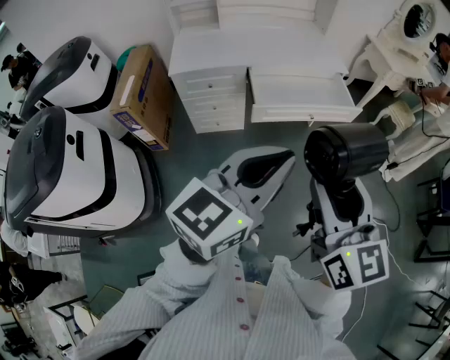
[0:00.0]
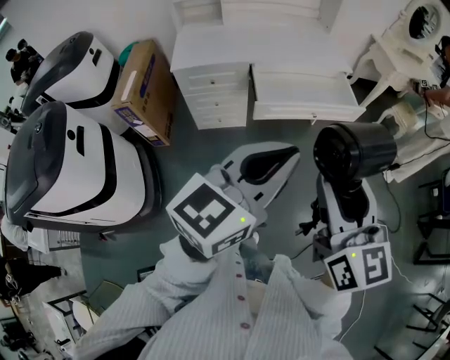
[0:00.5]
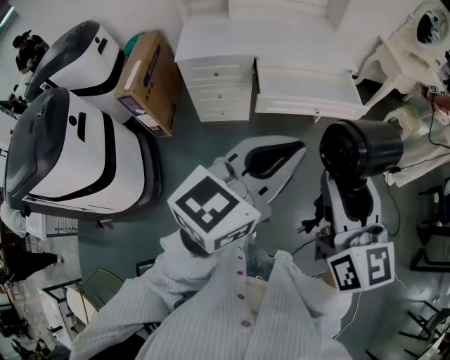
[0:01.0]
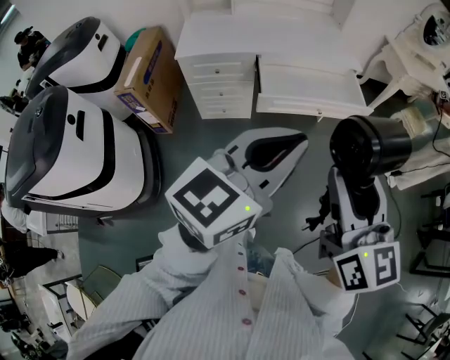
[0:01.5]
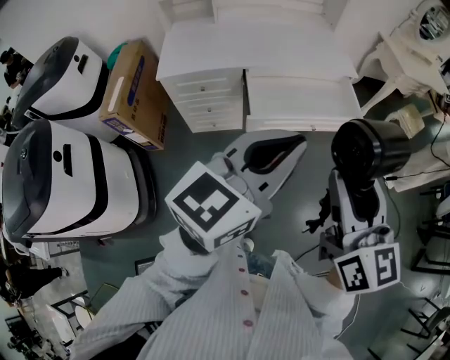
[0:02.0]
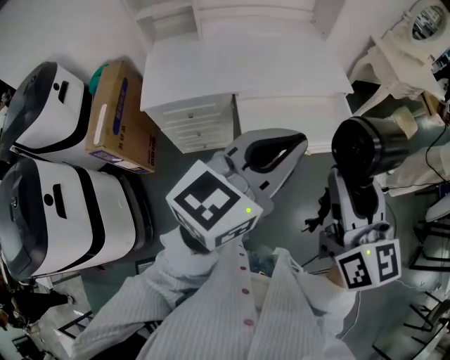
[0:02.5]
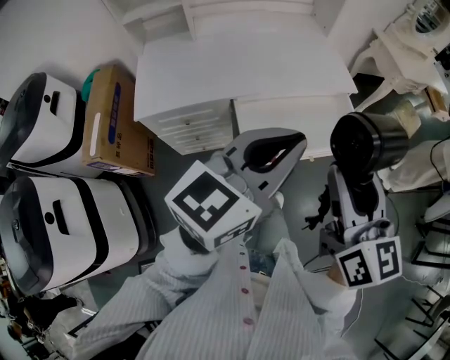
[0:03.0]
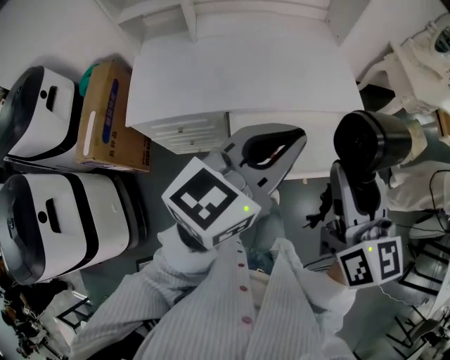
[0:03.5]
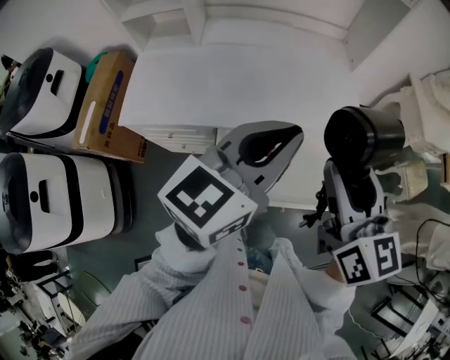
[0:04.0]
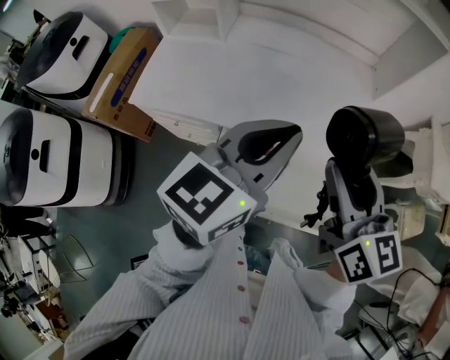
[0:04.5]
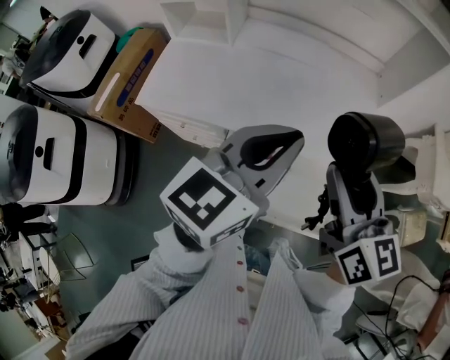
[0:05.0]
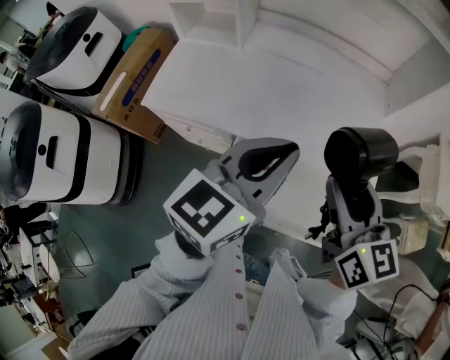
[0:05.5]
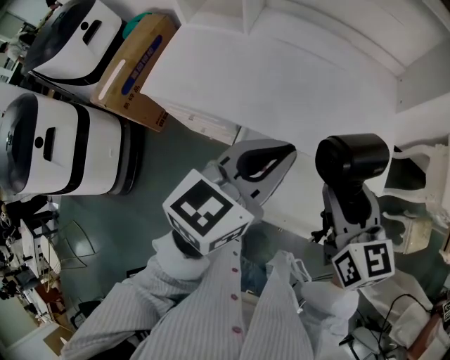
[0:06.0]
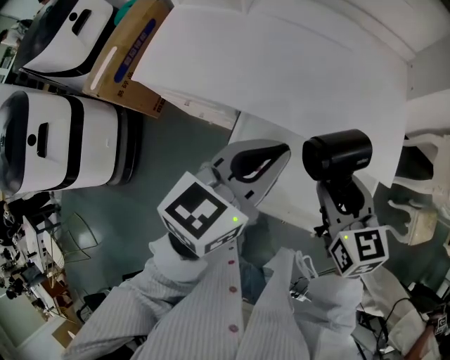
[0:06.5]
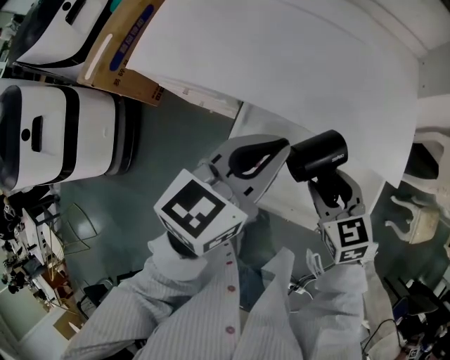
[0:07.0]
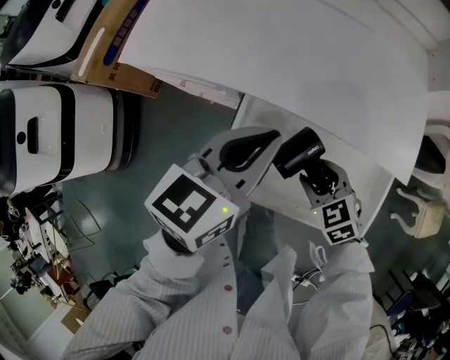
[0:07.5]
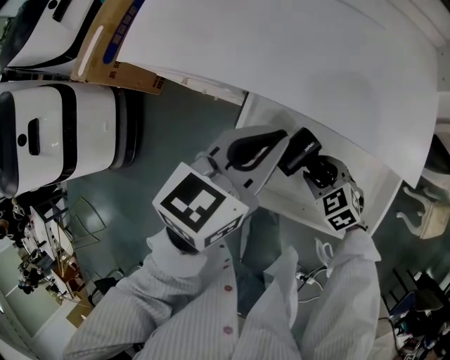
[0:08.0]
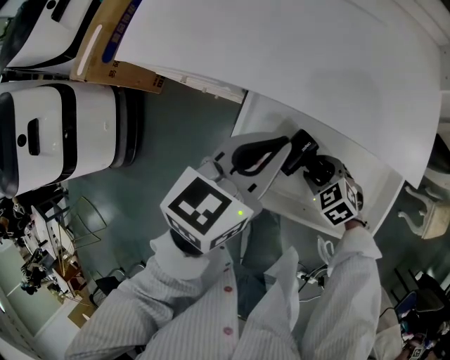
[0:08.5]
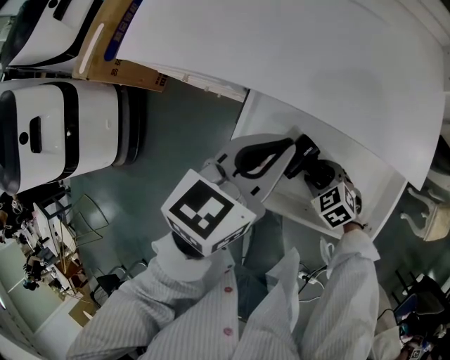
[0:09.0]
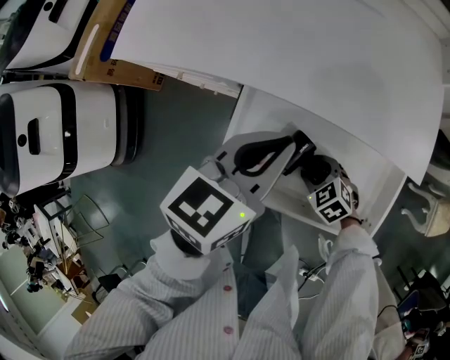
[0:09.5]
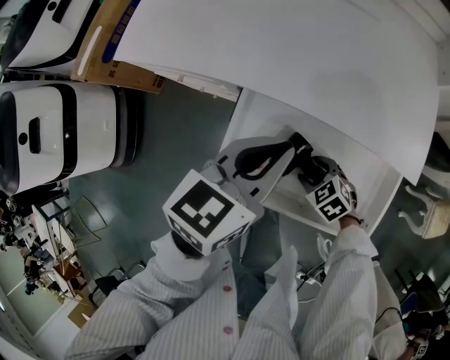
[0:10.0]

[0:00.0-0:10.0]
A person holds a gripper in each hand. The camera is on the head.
0.0 to 2.0 s: The grippers both shift forward by roughly 15 cm.
2.0 to 4.0 s: The two grippers travel together, forward, roughly 40 cm.
4.0 to 6.0 s: The right gripper is displaced downward and forward by approximately 15 cm, and swivels about 20 degrees. The left gripper is displaced downward and to the left by some 10 cm.
6.0 to 8.0 s: The left gripper moves downward, roughly 15 cm, while the right gripper goes about 35 cm downward, and tips its fingers downward by about 40 degrees.
8.0 to 10.0 s: The right gripper moves downward, some 5 cm.

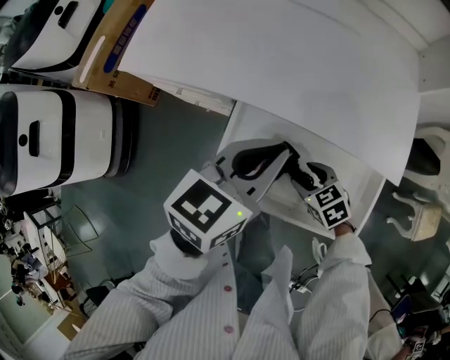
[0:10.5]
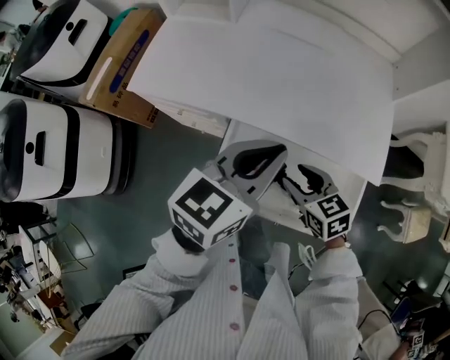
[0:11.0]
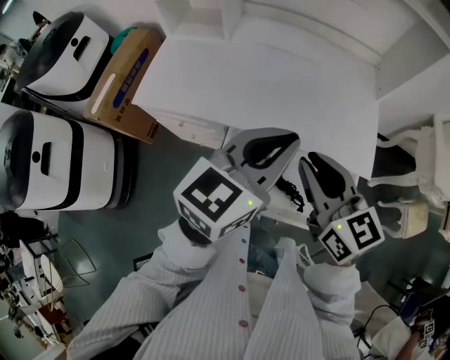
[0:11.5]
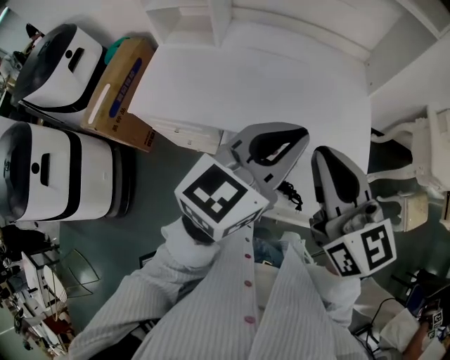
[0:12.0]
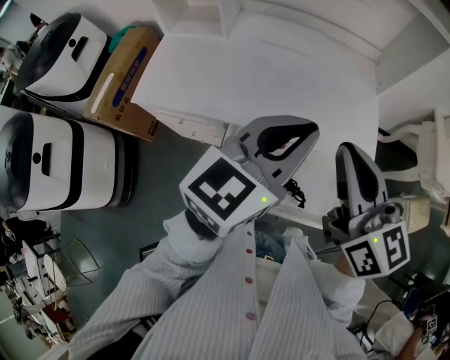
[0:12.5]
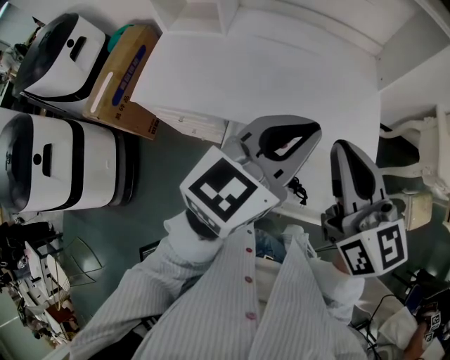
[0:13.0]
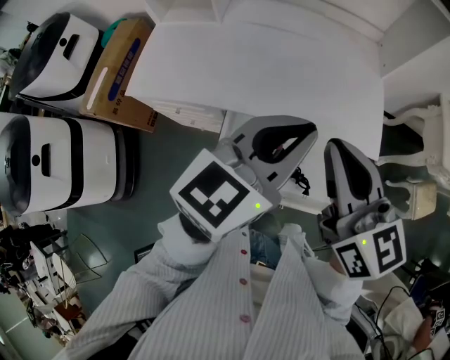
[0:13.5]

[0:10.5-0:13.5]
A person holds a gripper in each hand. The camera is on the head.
10.5 to 12.0 s: The right gripper is displaced upward by approximately 40 cm, tips its fingers upward by approximately 50 degrees, and closes. The left gripper moves upward, about 20 cm, and swivels about 20 degrees.
12.0 to 13.5 s: The grippers make only small movements.

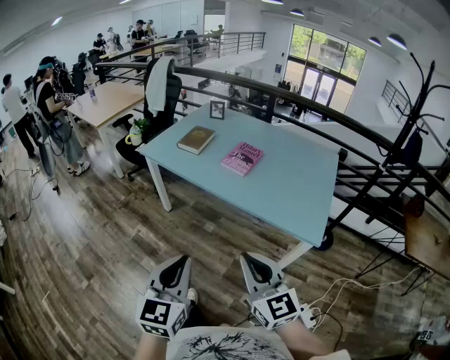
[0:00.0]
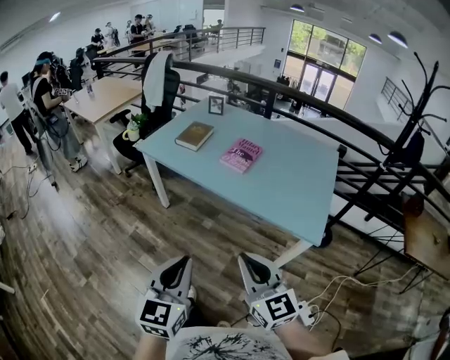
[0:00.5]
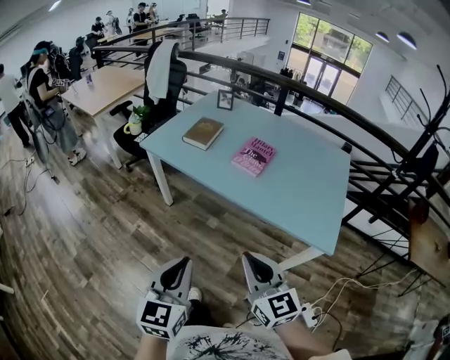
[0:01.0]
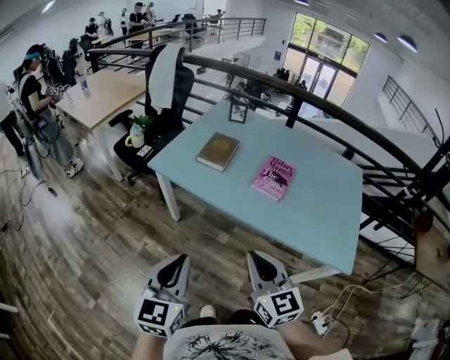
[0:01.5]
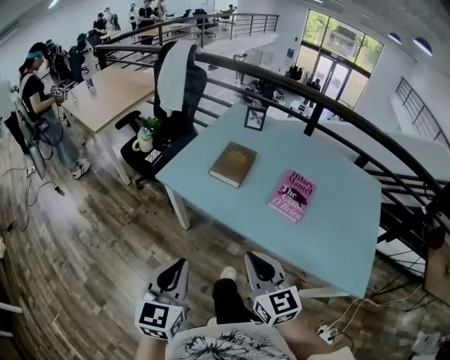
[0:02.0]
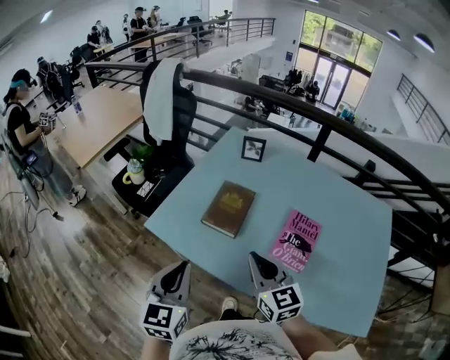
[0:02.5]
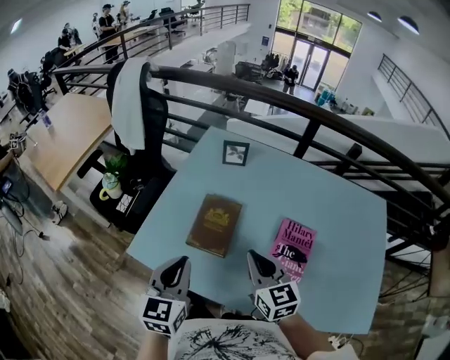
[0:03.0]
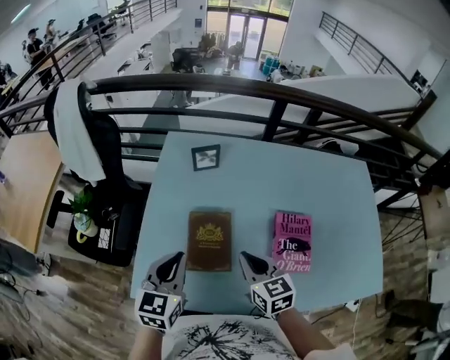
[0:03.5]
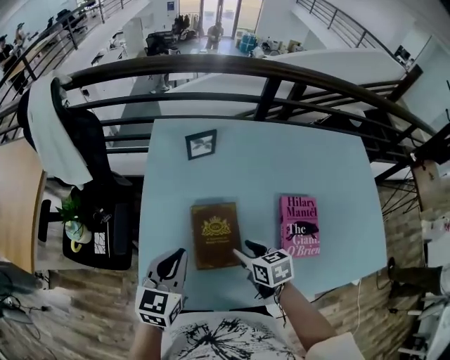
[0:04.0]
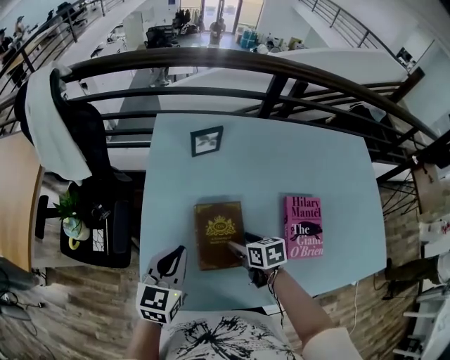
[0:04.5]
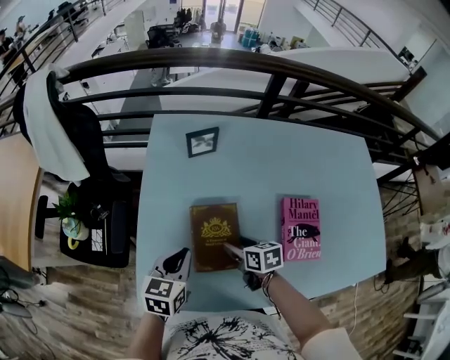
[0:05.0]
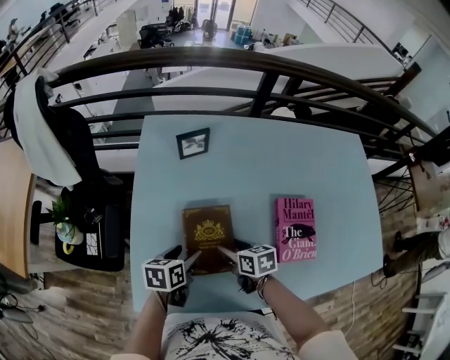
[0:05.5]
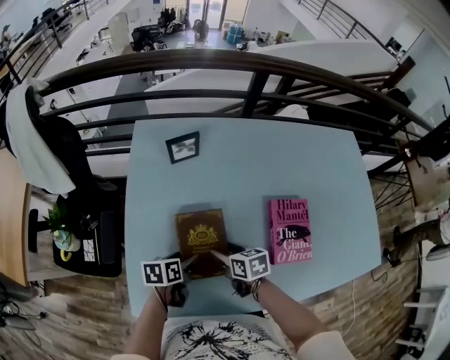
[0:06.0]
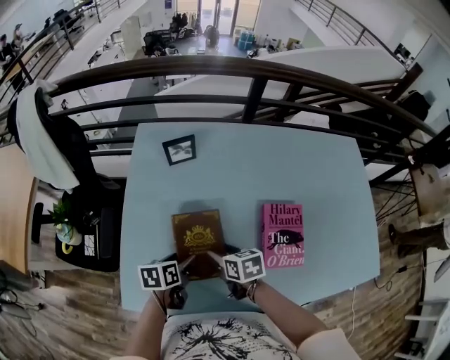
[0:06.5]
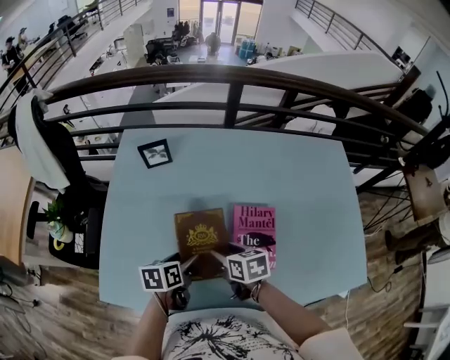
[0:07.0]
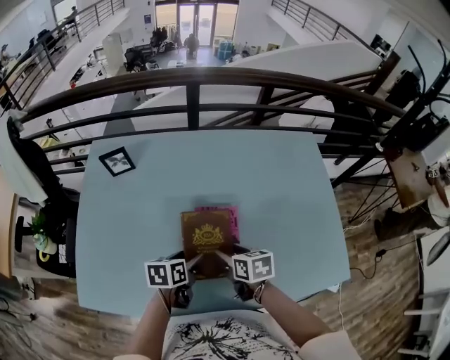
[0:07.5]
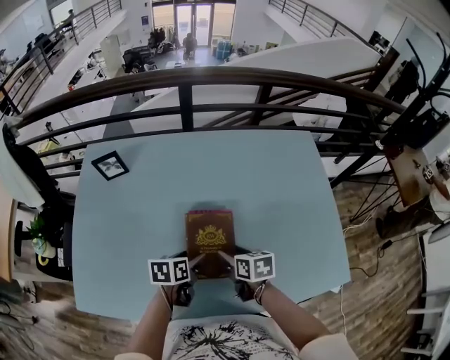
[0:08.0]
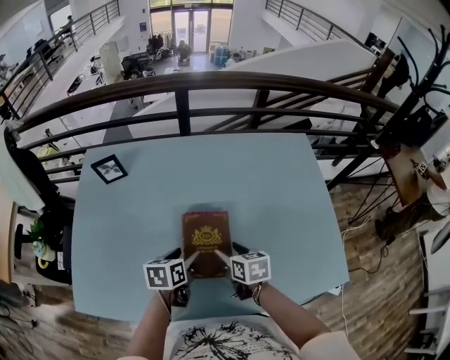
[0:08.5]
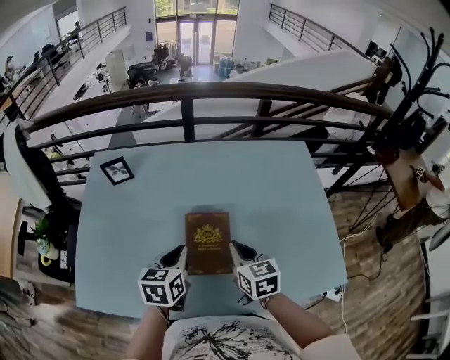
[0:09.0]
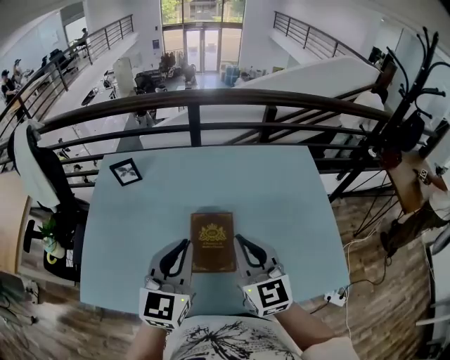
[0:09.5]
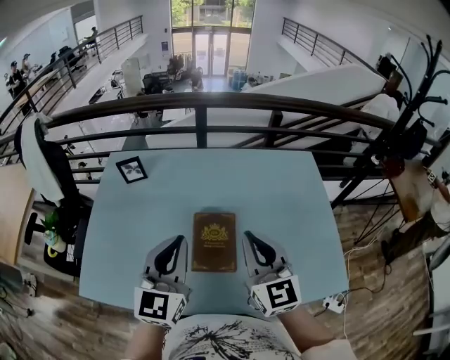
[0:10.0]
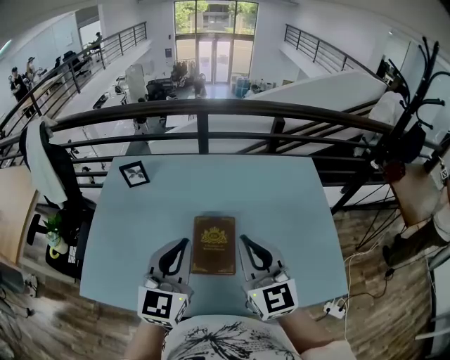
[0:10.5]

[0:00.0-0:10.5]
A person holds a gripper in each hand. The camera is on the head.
0.0 to 2.0 s: The pair of grippers is taken forward and to the left, roughly 40 cm.
2.0 to 4.0 s: The two grippers travel together, some 50 cm. The right gripper points its fingers approximately 40 degrees further downward, and opens. The left gripper swivels approximately 40 degrees.
4.0 to 6.5 s: The left gripper travels downward and to the right by some 15 cm, swivels about 50 degrees, and opens.
6.5 to 8.5 s: The grippers both shift to the right by approximately 30 cm.
8.5 to 10.5 s: The two grippers go roughly 30 cm upward. The left gripper tilts its fingers about 40 degrees upward, and closes its fingers; the right gripper tips its fingers upward by roughly 40 degrees, and closes its fingers.

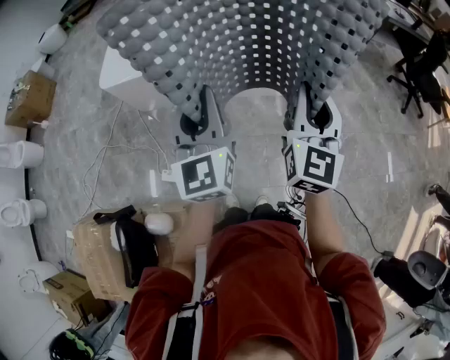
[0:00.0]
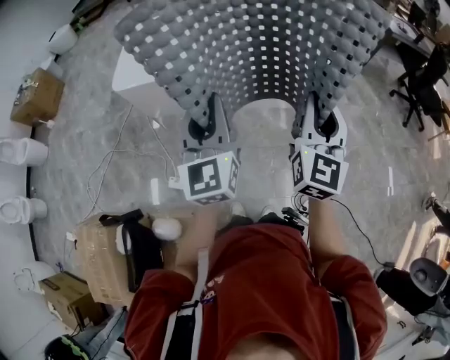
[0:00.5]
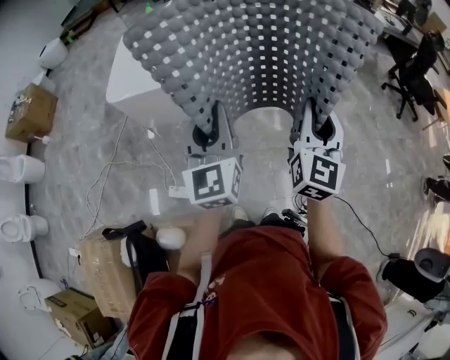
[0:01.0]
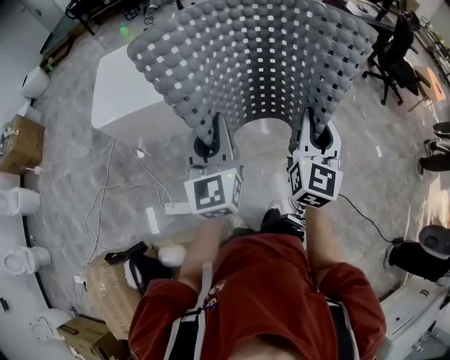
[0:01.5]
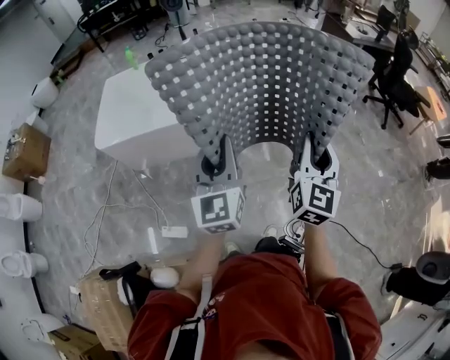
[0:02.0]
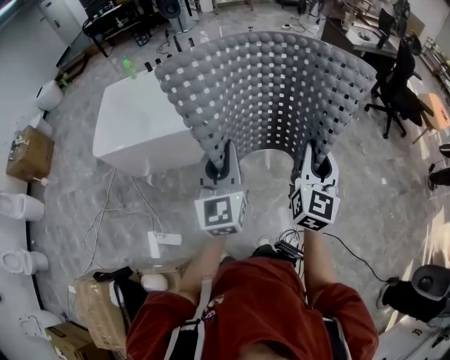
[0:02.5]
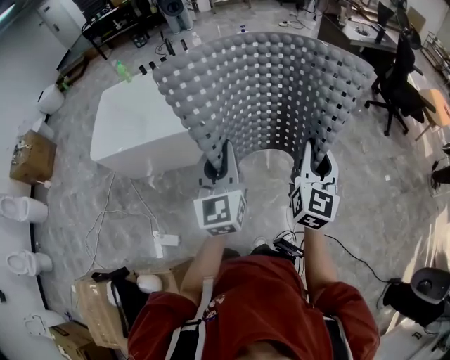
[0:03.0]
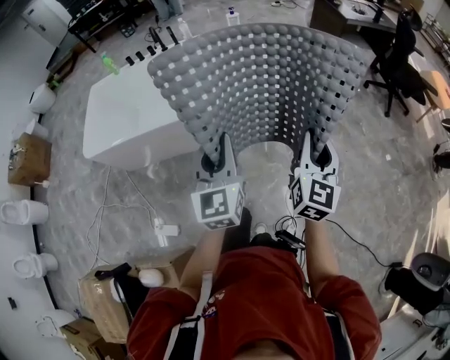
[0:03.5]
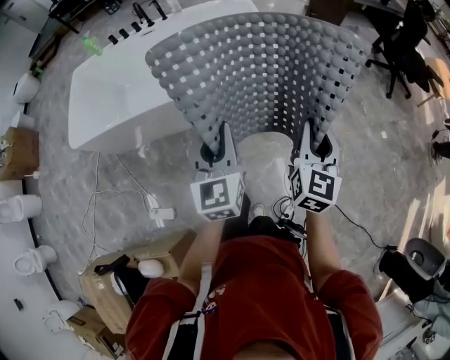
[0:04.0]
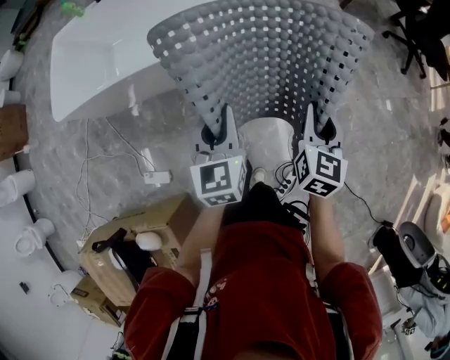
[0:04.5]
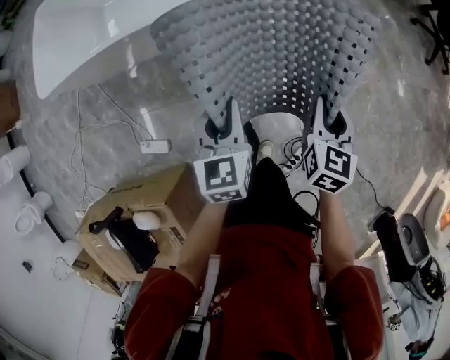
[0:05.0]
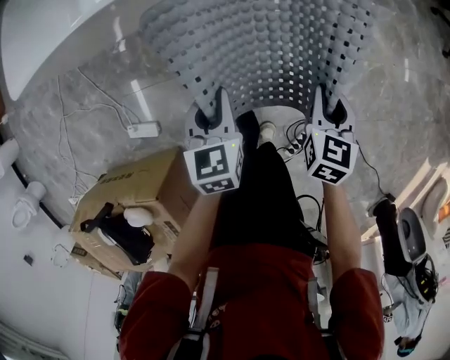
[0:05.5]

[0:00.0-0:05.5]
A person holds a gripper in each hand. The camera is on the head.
0.0 to 2.0 s: Both grippers travel together to the right, about 10 cm.
2.0 to 3.5 s: Both grippers travel together upward, some 5 cm. The left gripper moves roughly 10 cm to the right and comes back. The right gripper moves roughly 10 cm to the right and comes back.
3.5 to 5.5 s: Both grippers move downward, about 40 cm. The left gripper tilts its fingers roughly 40 degrees downward, while the right gripper tilts its fingers some 40 degrees downward.
